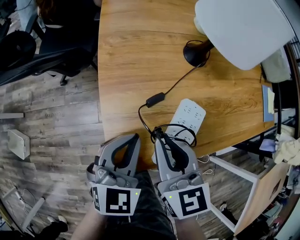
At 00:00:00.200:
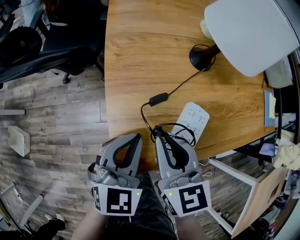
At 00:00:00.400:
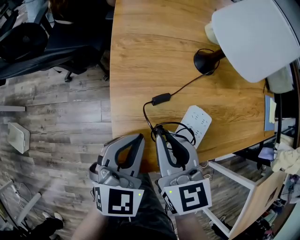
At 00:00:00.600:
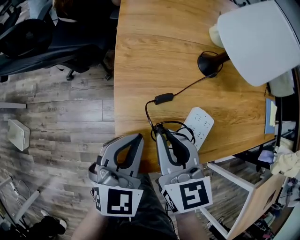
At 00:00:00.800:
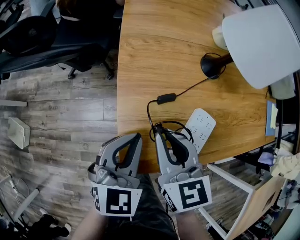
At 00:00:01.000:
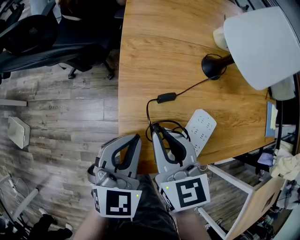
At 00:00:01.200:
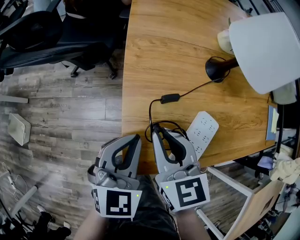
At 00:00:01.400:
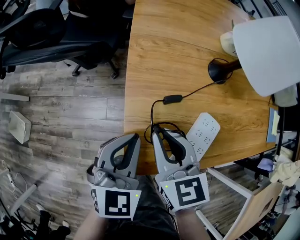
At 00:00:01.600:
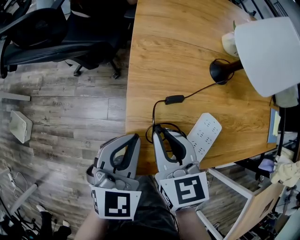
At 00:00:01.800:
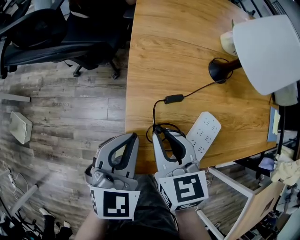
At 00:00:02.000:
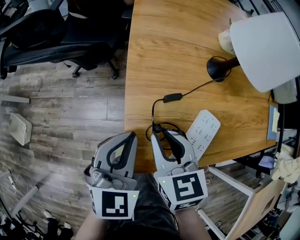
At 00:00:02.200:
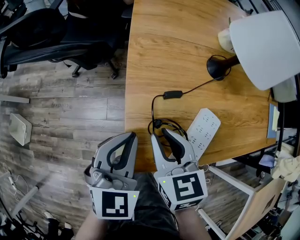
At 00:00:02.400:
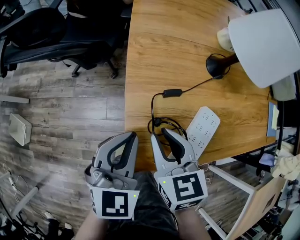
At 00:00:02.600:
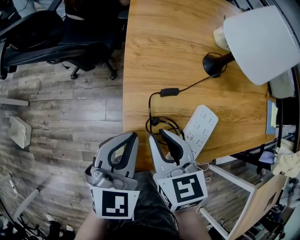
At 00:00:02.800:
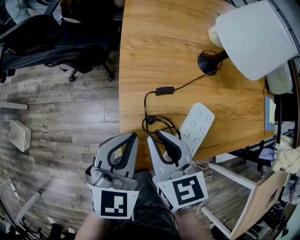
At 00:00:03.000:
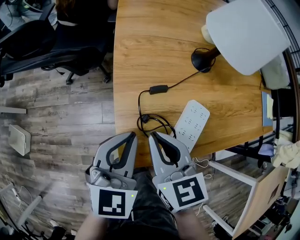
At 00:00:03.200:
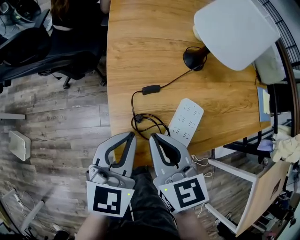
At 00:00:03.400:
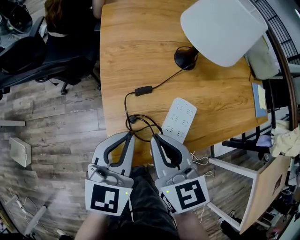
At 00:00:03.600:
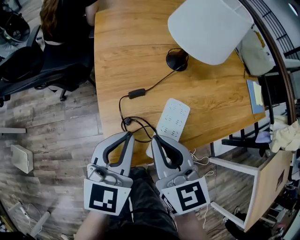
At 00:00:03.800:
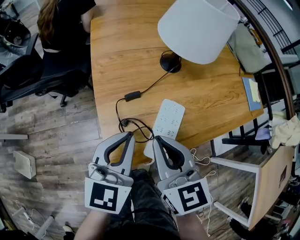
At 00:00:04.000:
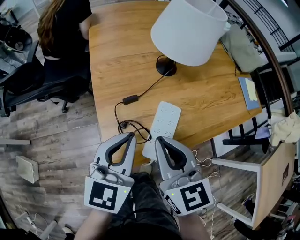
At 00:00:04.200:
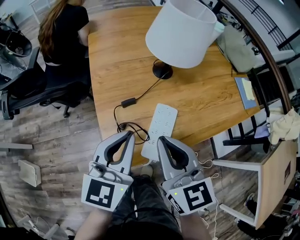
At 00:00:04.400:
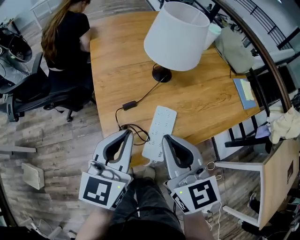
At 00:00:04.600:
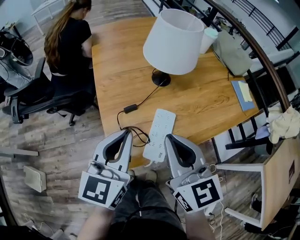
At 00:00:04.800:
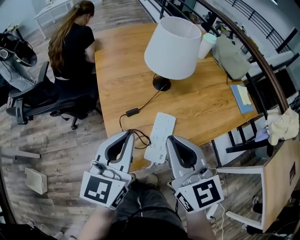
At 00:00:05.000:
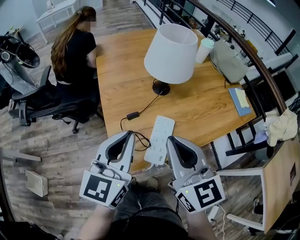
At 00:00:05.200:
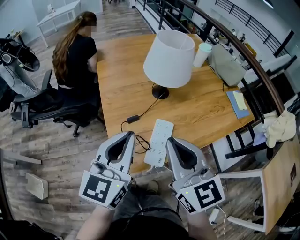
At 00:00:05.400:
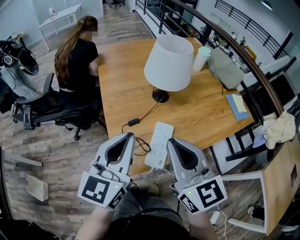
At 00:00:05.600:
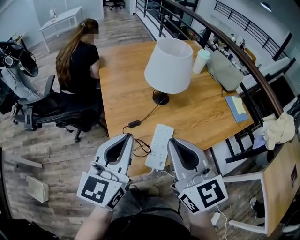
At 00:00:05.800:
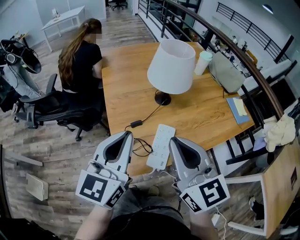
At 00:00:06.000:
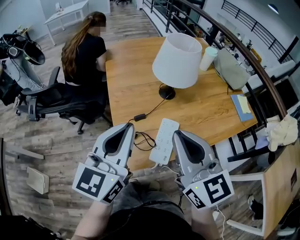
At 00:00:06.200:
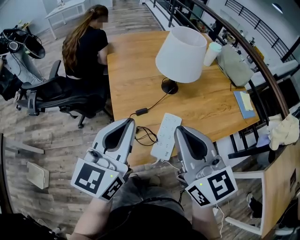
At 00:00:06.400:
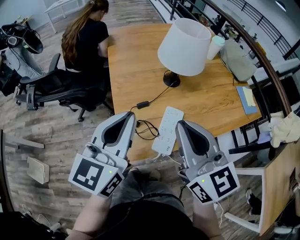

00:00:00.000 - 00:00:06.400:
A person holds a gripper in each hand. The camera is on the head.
00:00:00.000 - 00:00:01.600: Both grippers move to the left, some 5 cm.
00:00:01.600 - 00:00:03.200: The right gripper changes place by some 5 cm.
00:00:03.200 - 00:00:04.800: The left gripper shifts some 15 cm upward; the right gripper heads upward and to the right, covering some 20 cm, and rotates about 20 degrees.
00:00:04.800 - 00:00:06.400: The two grippers go about 5 cm upward.

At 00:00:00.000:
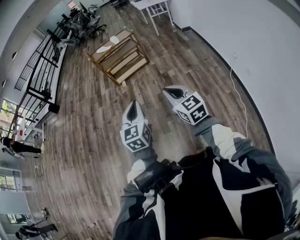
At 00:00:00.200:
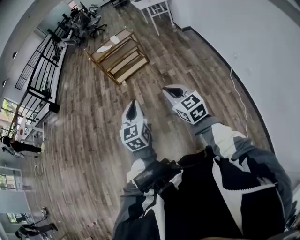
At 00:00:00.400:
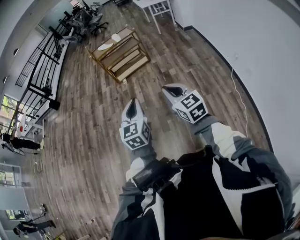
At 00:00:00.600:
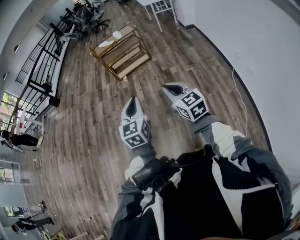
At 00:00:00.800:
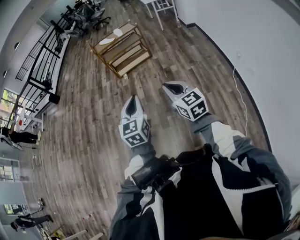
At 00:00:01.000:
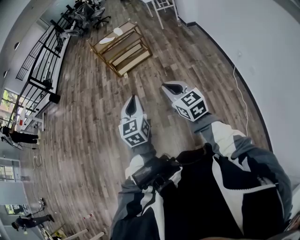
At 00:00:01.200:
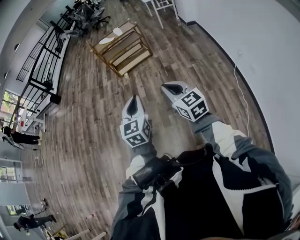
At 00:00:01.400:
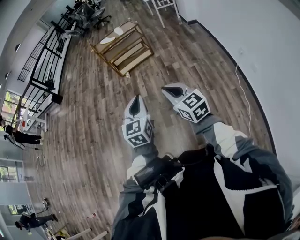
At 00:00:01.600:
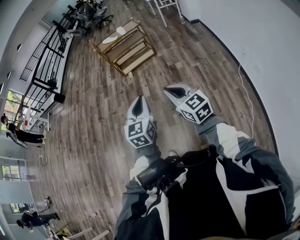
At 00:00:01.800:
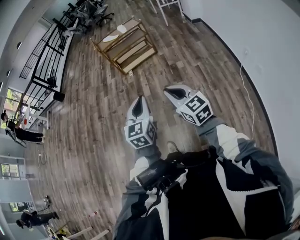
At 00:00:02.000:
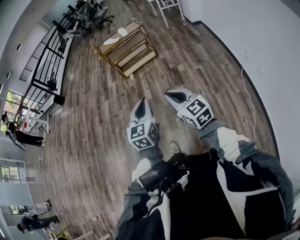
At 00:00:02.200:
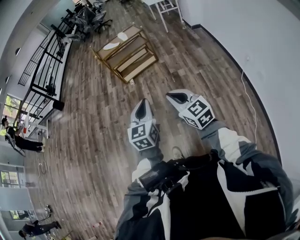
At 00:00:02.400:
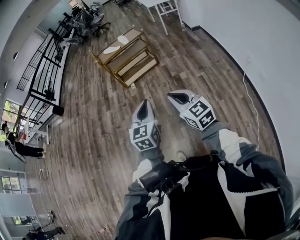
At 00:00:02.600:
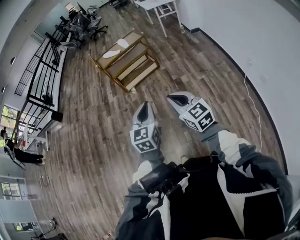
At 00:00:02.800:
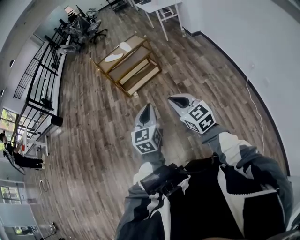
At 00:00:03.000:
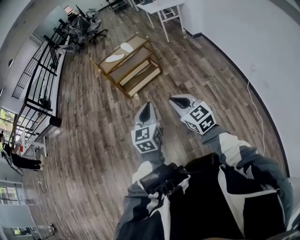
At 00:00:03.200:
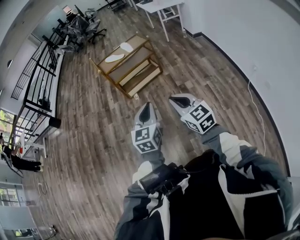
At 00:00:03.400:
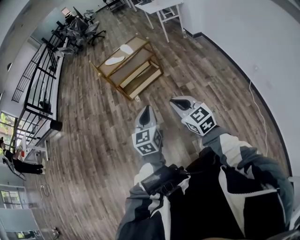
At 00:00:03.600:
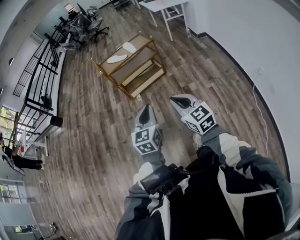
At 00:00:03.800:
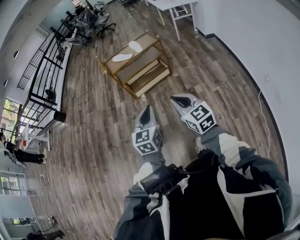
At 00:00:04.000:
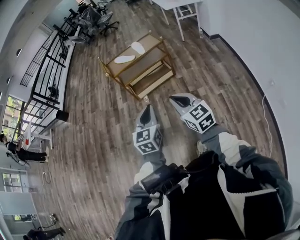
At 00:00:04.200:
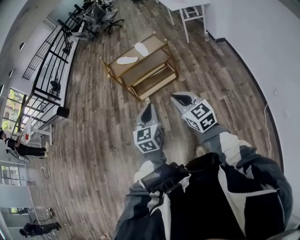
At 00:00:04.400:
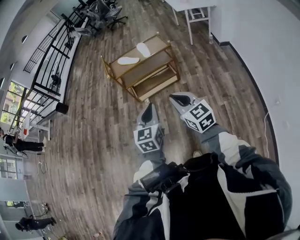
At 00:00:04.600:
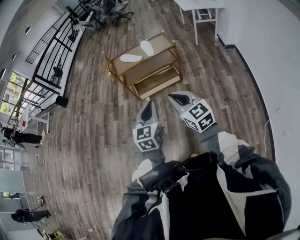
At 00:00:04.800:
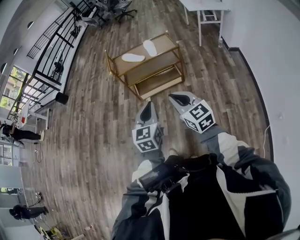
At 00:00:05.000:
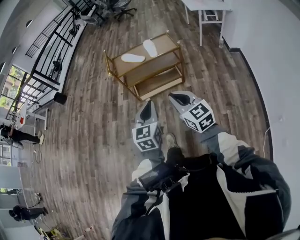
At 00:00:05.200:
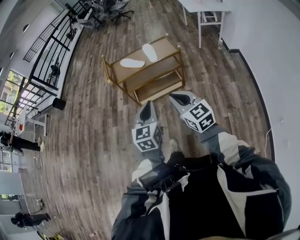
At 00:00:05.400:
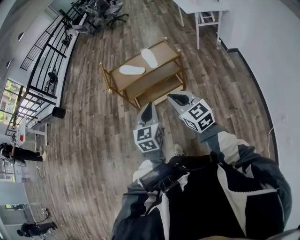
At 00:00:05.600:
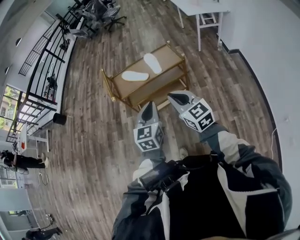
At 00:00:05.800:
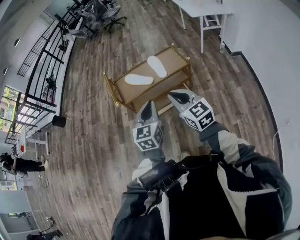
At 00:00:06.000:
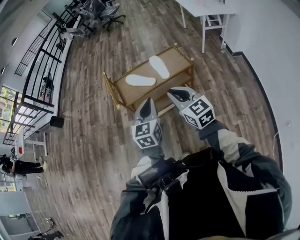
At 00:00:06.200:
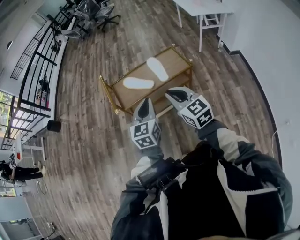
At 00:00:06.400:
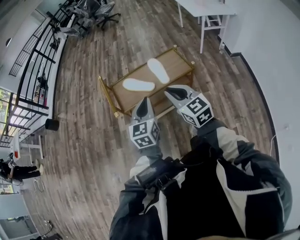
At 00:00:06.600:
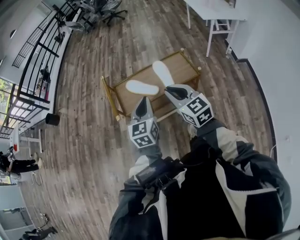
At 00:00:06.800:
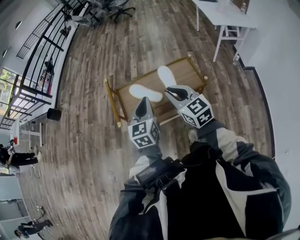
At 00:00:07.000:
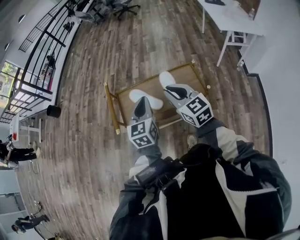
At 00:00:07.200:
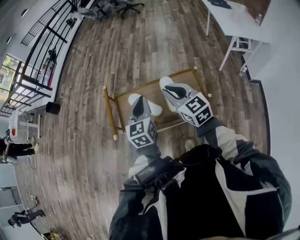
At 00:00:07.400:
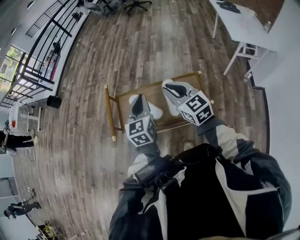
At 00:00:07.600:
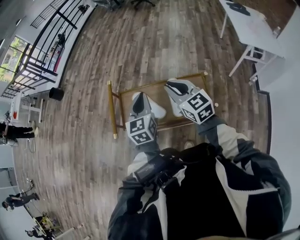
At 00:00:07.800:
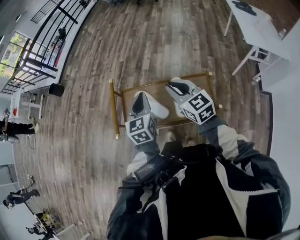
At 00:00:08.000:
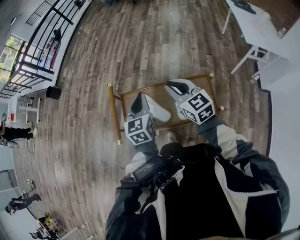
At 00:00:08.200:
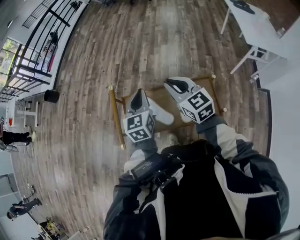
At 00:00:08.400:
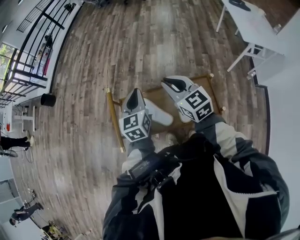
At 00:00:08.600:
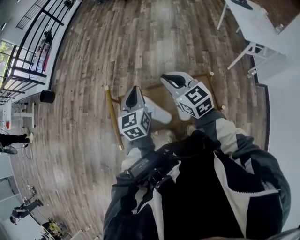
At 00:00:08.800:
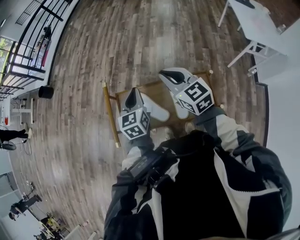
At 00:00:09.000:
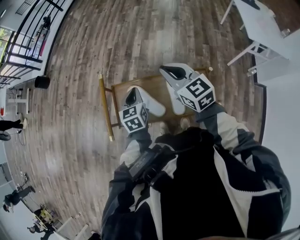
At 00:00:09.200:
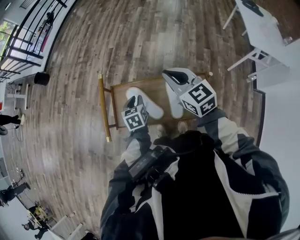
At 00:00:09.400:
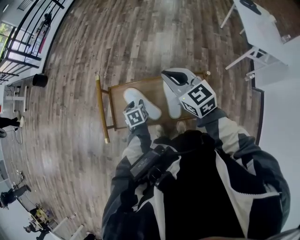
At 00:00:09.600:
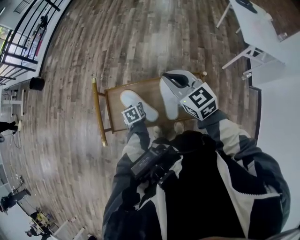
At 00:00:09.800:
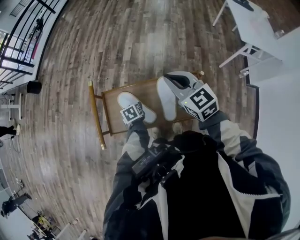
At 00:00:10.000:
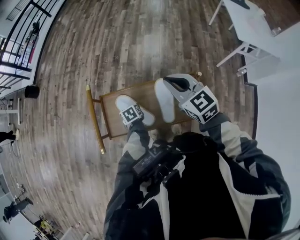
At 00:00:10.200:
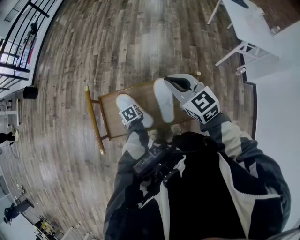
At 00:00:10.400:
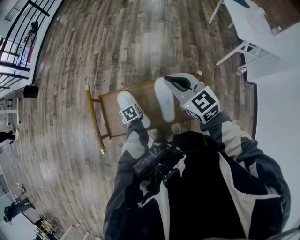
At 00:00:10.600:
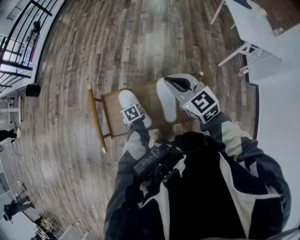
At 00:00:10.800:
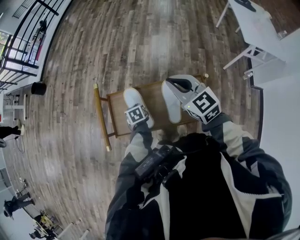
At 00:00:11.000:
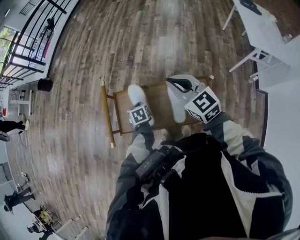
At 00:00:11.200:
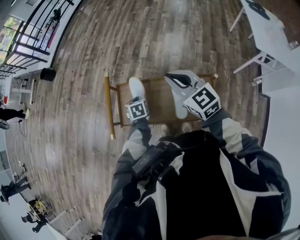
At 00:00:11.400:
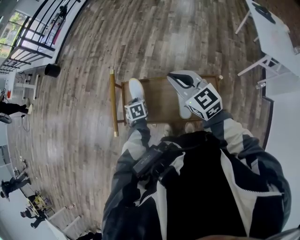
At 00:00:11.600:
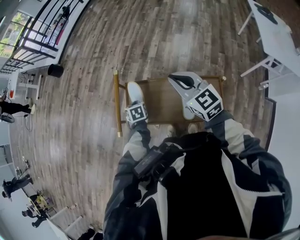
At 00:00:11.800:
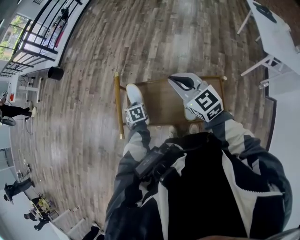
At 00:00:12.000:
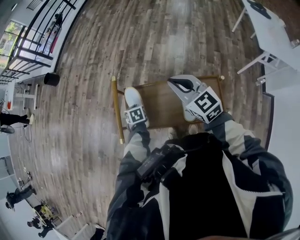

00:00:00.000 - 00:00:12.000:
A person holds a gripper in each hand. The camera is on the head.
00:00:00.000 - 00:00:01.600: There are only small adjustments of the grippers.
00:00:01.600 - 00:00:03.000: The two grippers go roughly 25 cm forward.
00:00:03.000 - 00:00:04.400: The grippers both shift forward by some 25 cm.
00:00:04.400 - 00:00:06.000: Both grippers travel together forward, approximately 40 cm.
00:00:06.000 - 00:00:07.600: Both grippers travel together forward, approximately 35 cm. The left gripper turns by roughly 20 degrees.
00:00:07.600 - 00:00:09.000: The right gripper goes roughly 10 cm forward. Meanwhile the left gripper travels downward and forward by some 15 cm.
00:00:09.000 - 00:00:10.400: The right gripper ends up roughly 5 cm from where it was, while the left gripper is displaced downward by approximately 20 cm, points its fingers some 30 degrees further downward, and opens and closes again.
00:00:10.400 - 00:00:12.000: The right gripper goes some 10 cm to the left, while the left gripper shifts roughly 10 cm to the left and upward.

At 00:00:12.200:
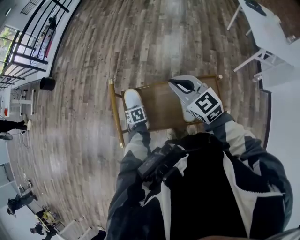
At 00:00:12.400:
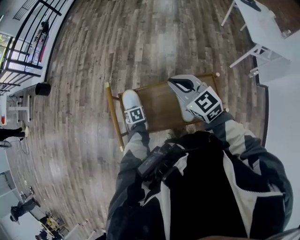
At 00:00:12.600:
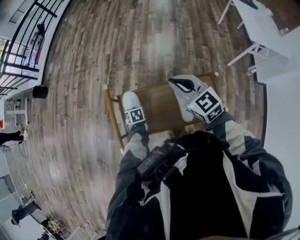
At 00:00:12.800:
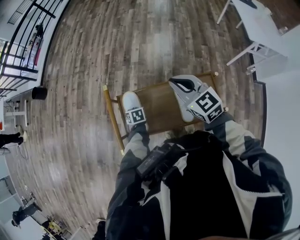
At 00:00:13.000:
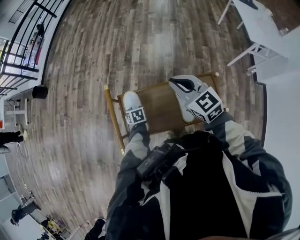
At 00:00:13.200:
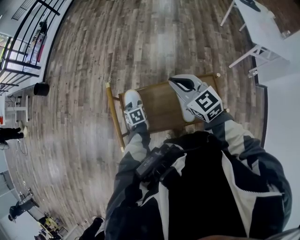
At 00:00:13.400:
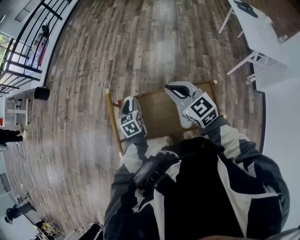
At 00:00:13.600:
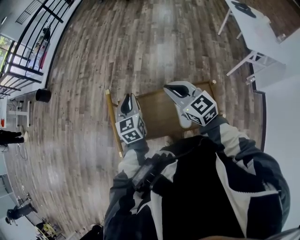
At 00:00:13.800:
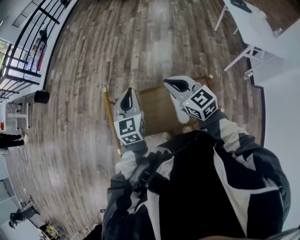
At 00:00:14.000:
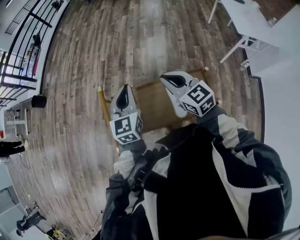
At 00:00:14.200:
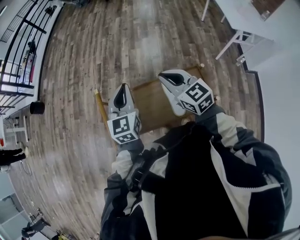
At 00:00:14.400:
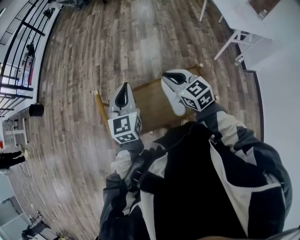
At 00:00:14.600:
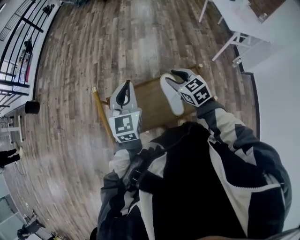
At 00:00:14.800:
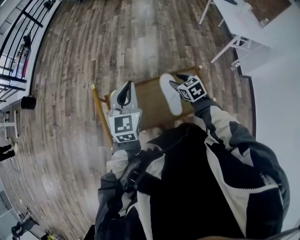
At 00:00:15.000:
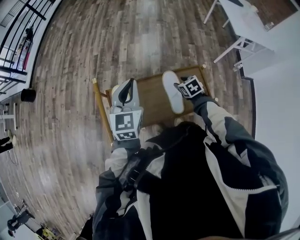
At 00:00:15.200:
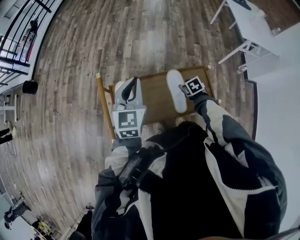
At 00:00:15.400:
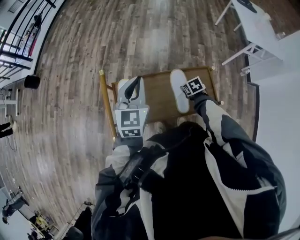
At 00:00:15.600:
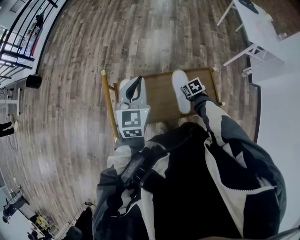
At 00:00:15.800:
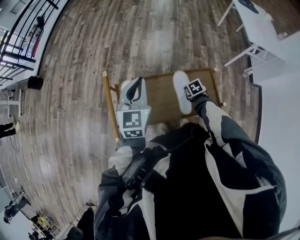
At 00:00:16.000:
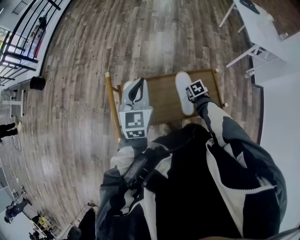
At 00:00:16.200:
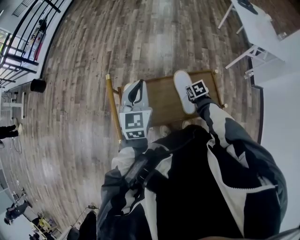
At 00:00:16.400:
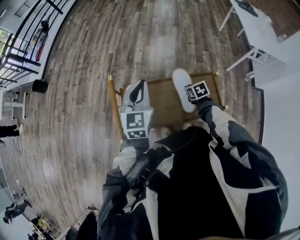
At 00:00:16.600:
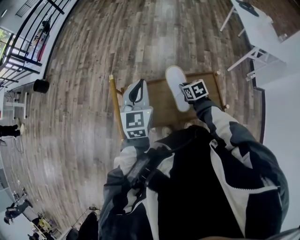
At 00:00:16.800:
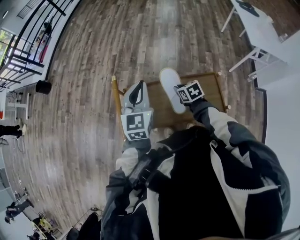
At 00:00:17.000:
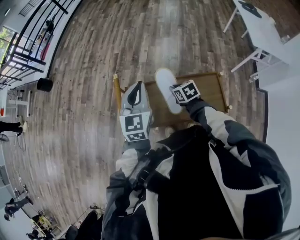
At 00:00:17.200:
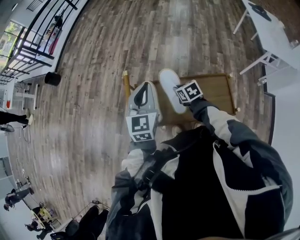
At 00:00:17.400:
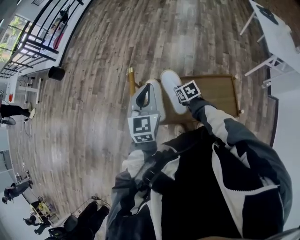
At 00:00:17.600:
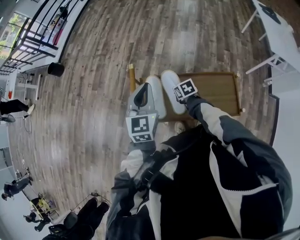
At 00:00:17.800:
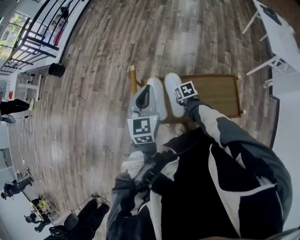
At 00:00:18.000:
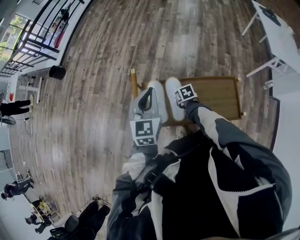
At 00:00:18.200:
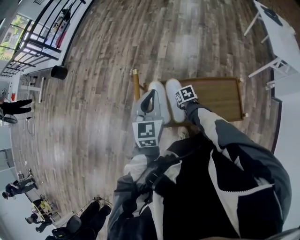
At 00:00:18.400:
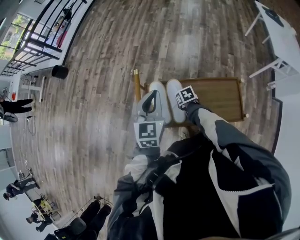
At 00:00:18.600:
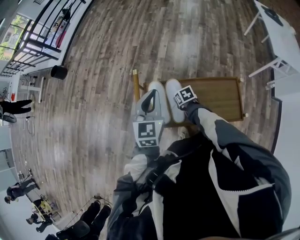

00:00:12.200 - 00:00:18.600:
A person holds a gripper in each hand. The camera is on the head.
00:00:12.200 - 00:00:13.800: The left gripper heads upward, covering roughly 30 cm, tips its fingers upward by some 50 degrees, and opens, then closes again.
00:00:13.800 - 00:00:15.400: The right gripper moves downward, approximately 30 cm, tips its fingers downward by roughly 50 degrees, and opens.
00:00:15.400 - 00:00:17.000: The right gripper travels to the left and upward by roughly 20 cm, changes its angle by roughly 20 degrees, and closes.
00:00:17.000 - 00:00:18.600: The right gripper is displaced downward and to the left by roughly 15 cm, and opens its fingers.
